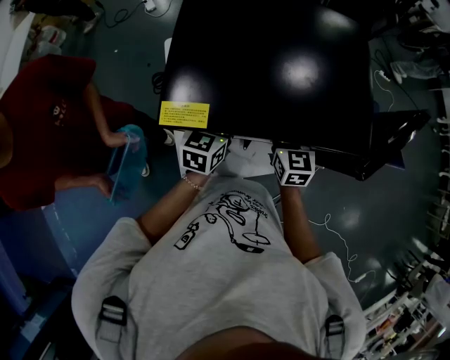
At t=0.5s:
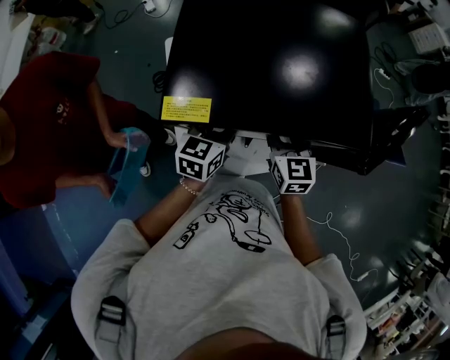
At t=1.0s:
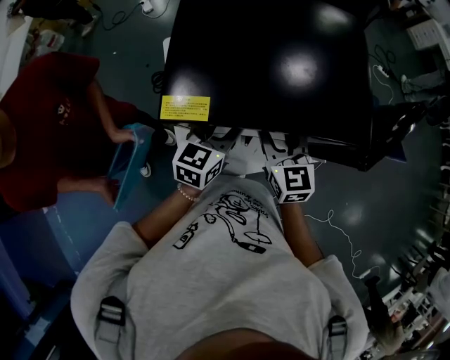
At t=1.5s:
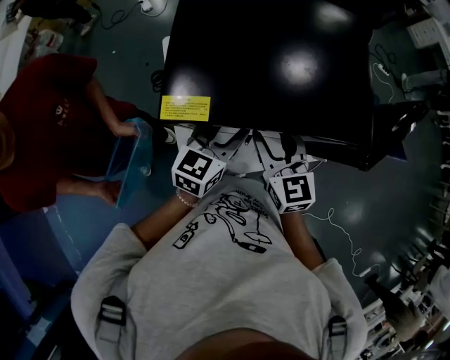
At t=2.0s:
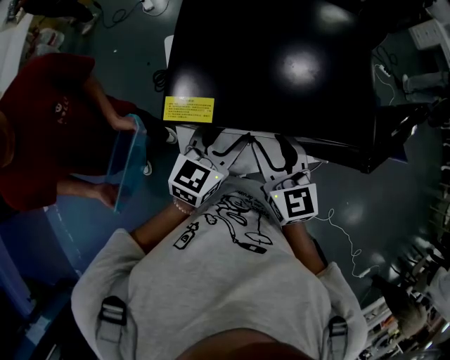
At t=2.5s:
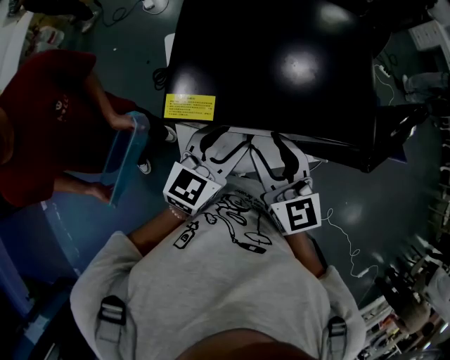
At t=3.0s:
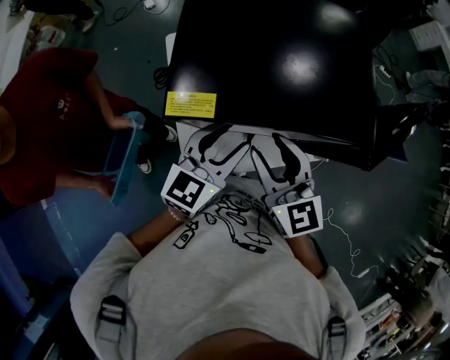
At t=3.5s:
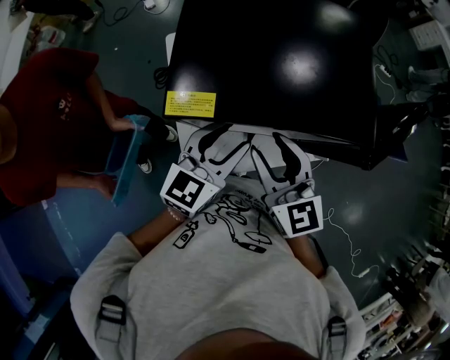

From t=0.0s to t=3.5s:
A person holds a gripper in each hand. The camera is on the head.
From t=0.0s to t=2.0s: The left gripper is displaced upward and backward by roughly 10 cm. Meanwhile the right gripper heads backward, upward and to the left, covering roughly 15 cm.
From t=2.0s to t=3.5s: The grippers make only small movements.

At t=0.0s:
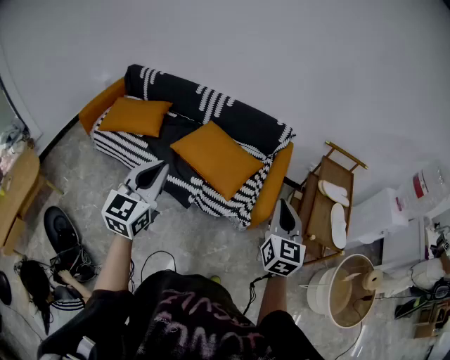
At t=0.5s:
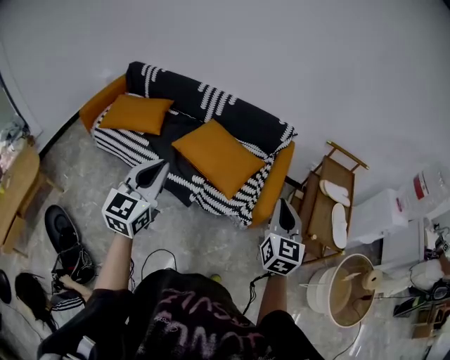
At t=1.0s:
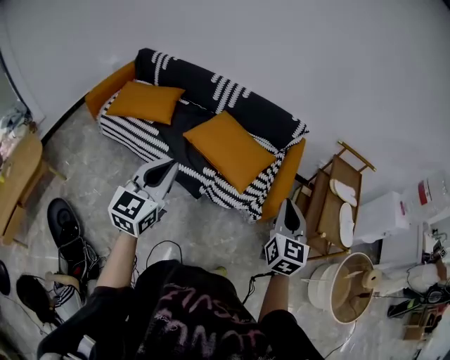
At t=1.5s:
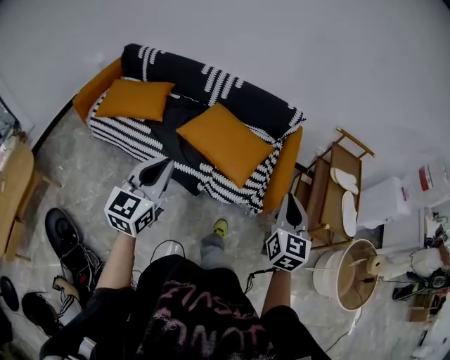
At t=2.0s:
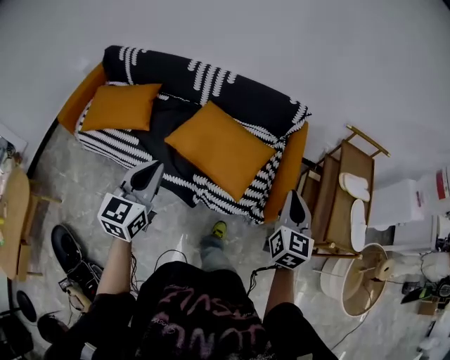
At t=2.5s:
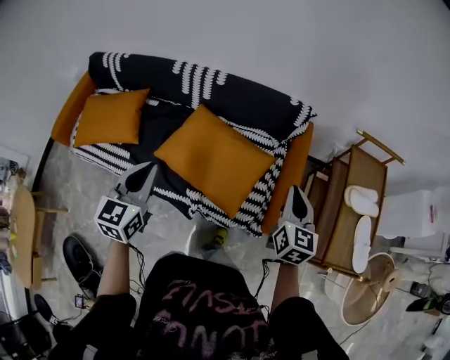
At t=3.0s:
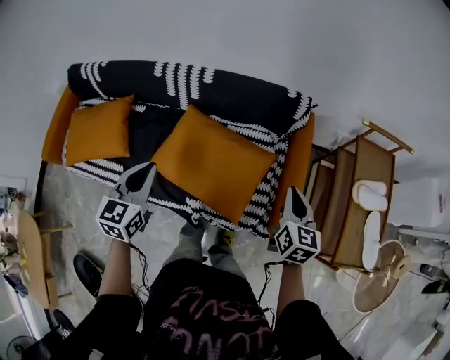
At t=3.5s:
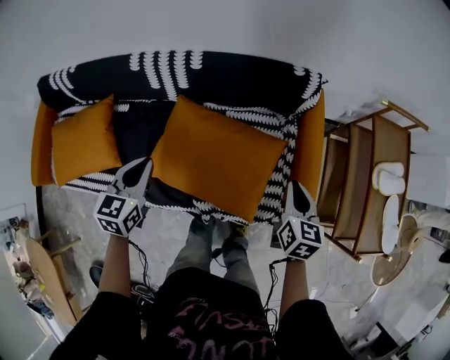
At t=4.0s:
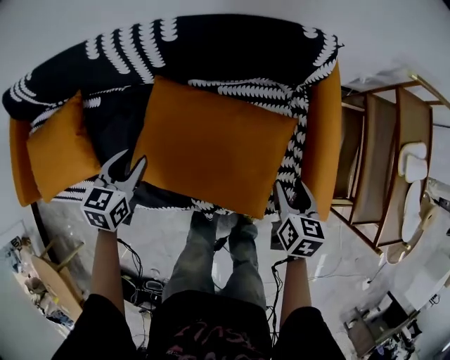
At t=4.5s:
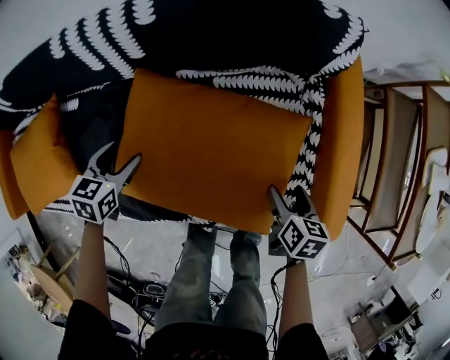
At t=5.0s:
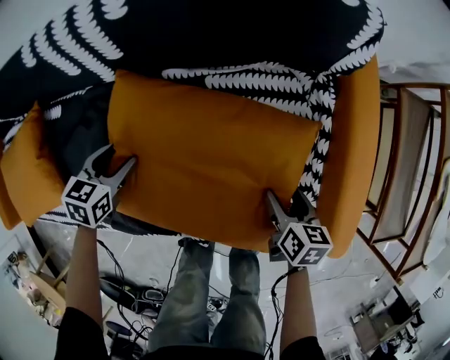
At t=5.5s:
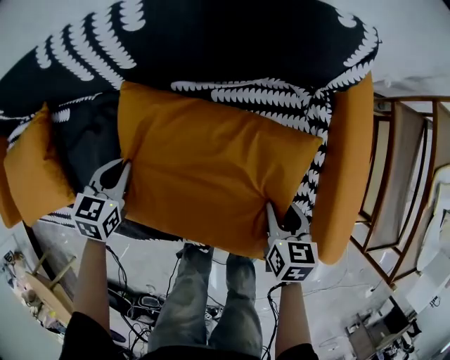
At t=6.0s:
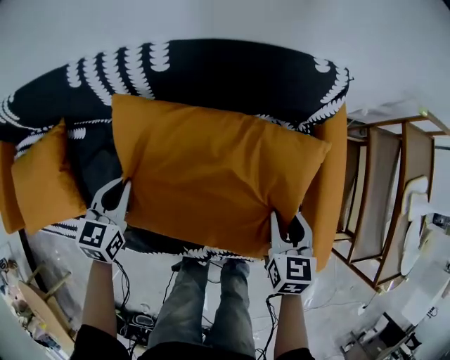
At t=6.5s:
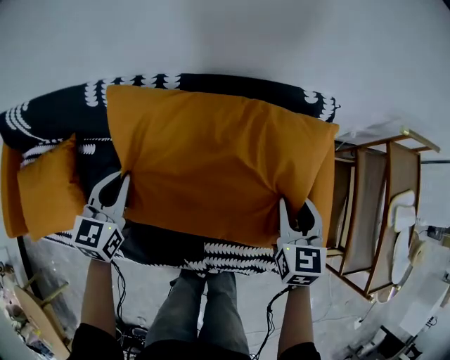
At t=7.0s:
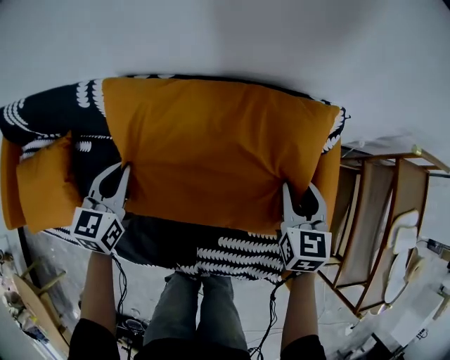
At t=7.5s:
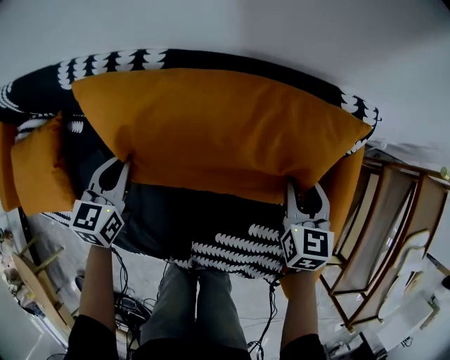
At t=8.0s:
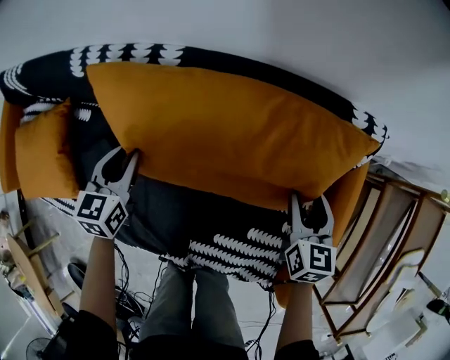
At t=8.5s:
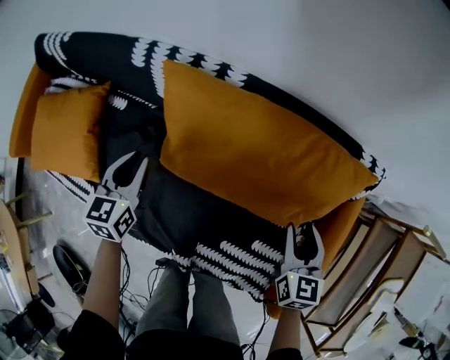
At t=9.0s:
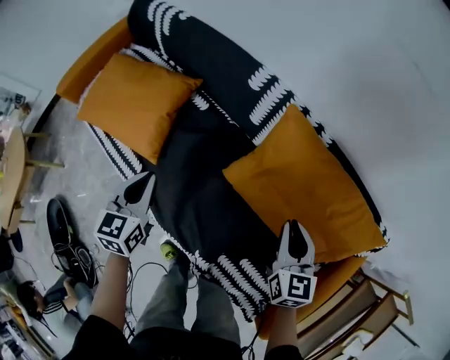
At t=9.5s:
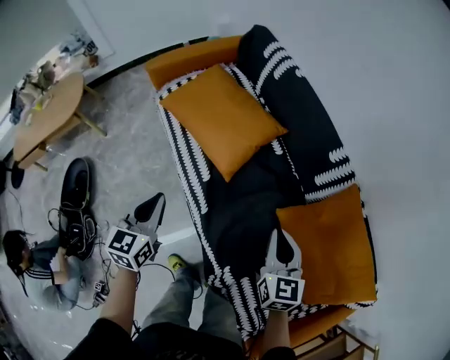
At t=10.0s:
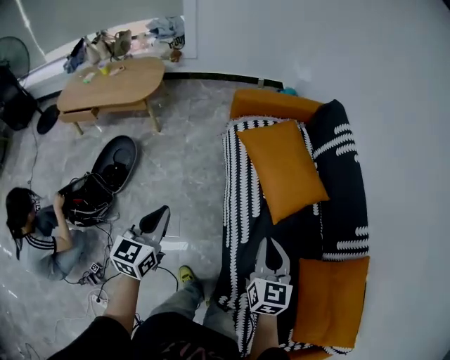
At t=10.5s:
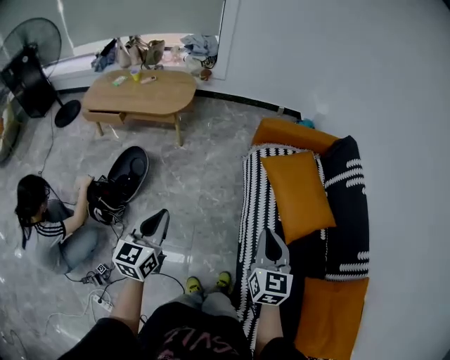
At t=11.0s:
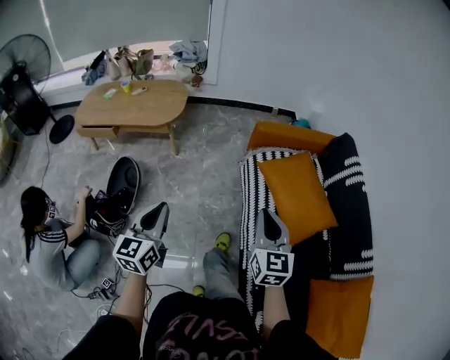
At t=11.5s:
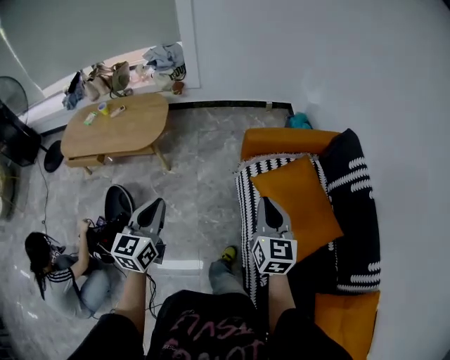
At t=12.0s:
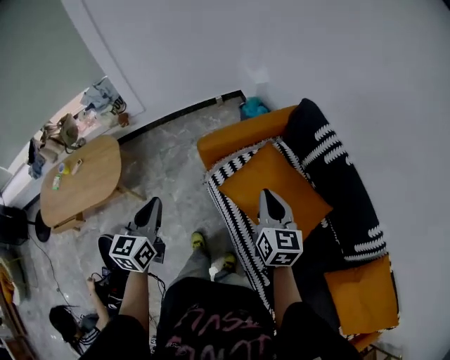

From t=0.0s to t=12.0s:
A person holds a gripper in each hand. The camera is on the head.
From t=0.0s to t=2.0s: The right gripper moves forward and downward, roughly 20 cm; the left gripper moves forward, downward and to the left, roughly 25 cm.
From t=2.0s to t=4.0s: The right gripper travels downward and forward by roughly 40 cm, points its fingers about 40 degrees further downward, and opens. The left gripper goes approximately 50 cm forward and downward, tips its fingers downward by roughly 30 degrees, and opens.
From t=4.0s to t=6.0s: The grippers both shift forward by roughly 5 cm. The left gripper moves some 20 cm downward and comes back; the right gripper moves approximately 20 cm downward and comes back.
From t=6.0s to t=8.0s: The right gripper heads forward, covering about 20 cm; the left gripper moves forward, some 10 cm, and goes upward and returns, roughly 10 cm each way.
From t=8.0s to t=10.0s: The pair of grippers is taken roughly 80 cm. The left gripper changes its angle by some 70 degrees; the right gripper changes its angle by roughly 80 degrees, and closes up.
From t=10.0s to t=12.0s: Both grippers travel together forward, approximately 40 cm.

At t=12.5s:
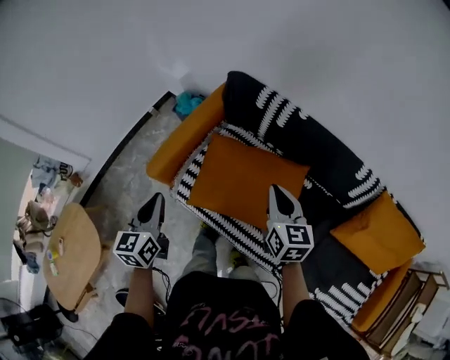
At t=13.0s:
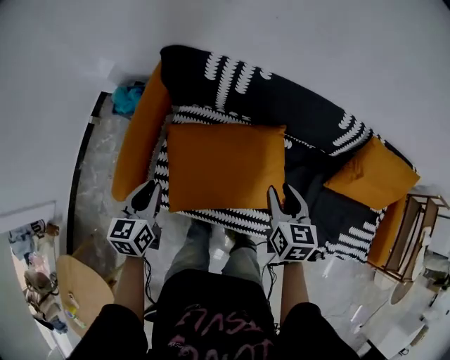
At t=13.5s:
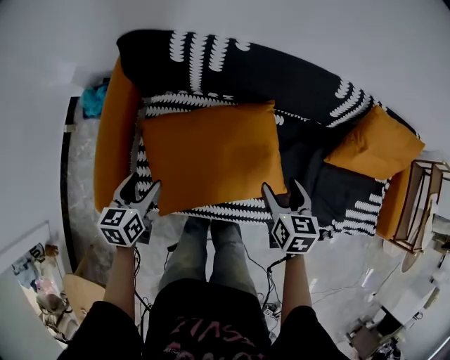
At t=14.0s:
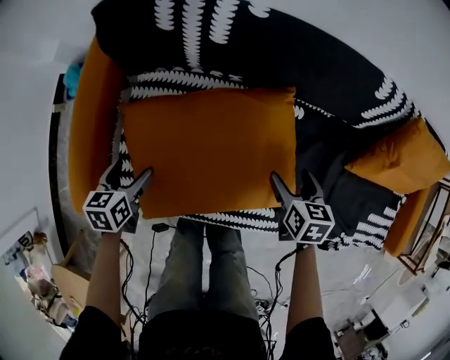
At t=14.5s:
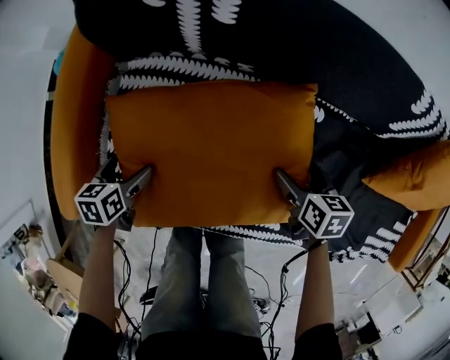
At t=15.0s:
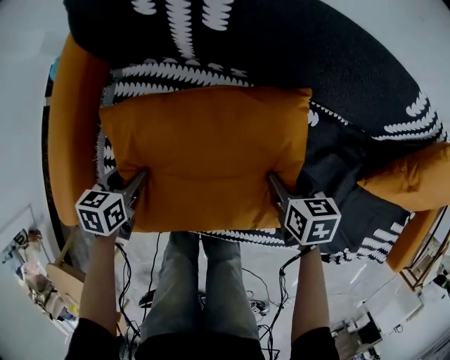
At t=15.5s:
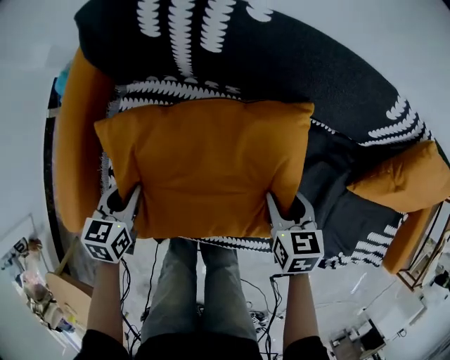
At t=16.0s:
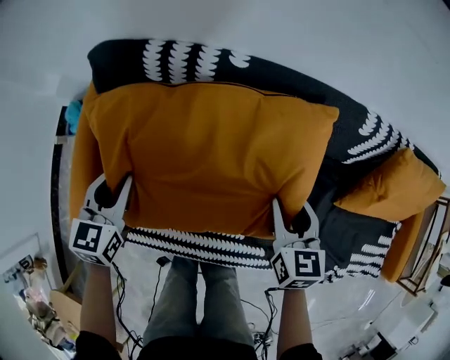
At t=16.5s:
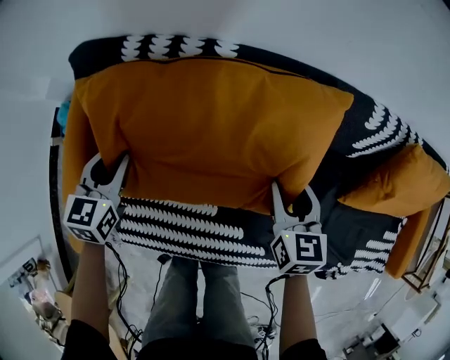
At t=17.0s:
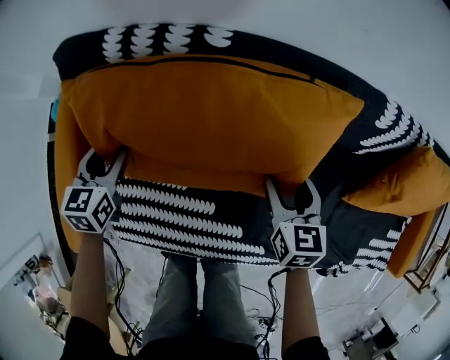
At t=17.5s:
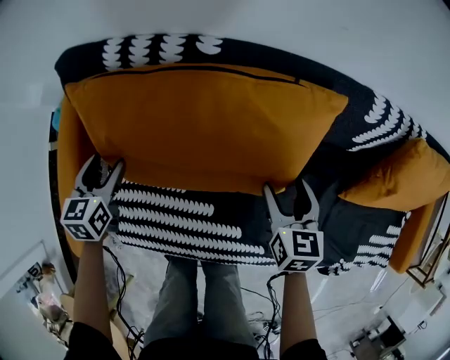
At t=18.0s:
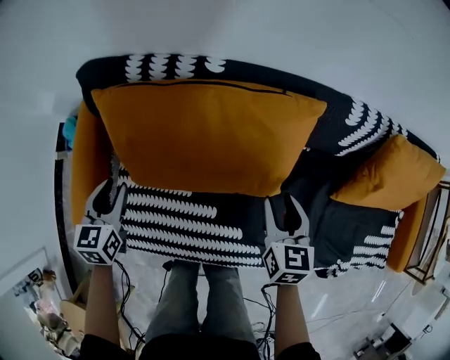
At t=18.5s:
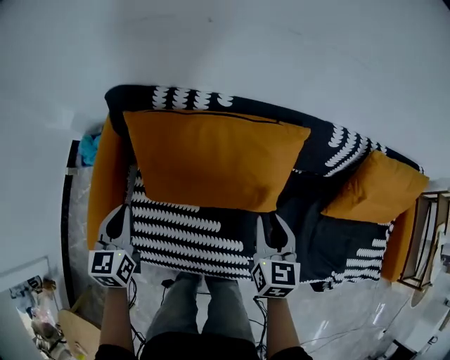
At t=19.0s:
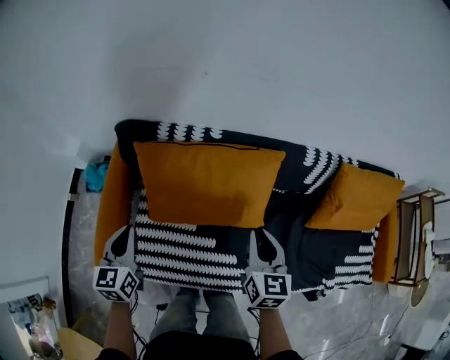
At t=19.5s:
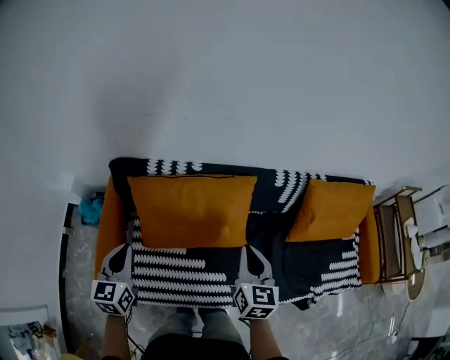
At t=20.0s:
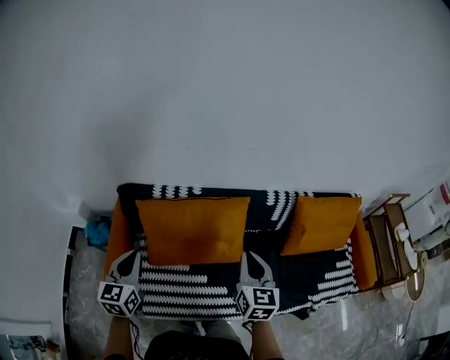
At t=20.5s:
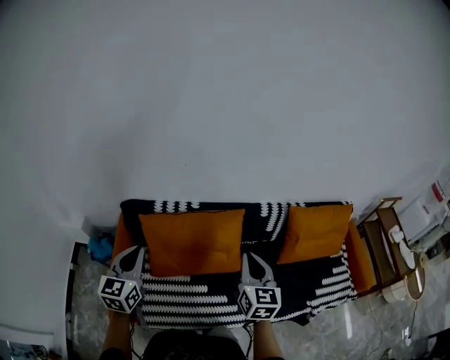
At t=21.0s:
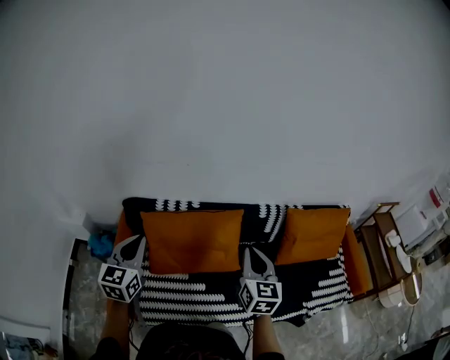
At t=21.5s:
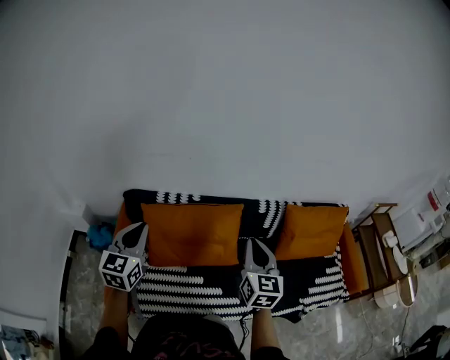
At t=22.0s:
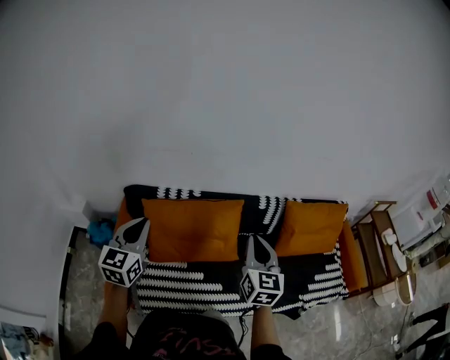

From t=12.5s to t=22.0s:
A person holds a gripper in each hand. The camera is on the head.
From t=12.5s to t=14.5s: The two grippers go about 50 cm downward. The right gripper tilts its fingers roughly 30 degrees downward, and opens its fingers. The left gripper angles its fingers downward, by about 40 degrees, and opens.
From t=14.5s to t=16.5s: Both grippers move upward and forward, approximately 20 cm. The right gripper changes its angle by roughly 30 degrees, and closes its fingers, while the left gripper rotates approximately 40 degrees, and closes up.
From t=16.5s to t=18.0s: Both grippers move backward, some 5 cm.
From t=18.0s to t=20.0s: Both grippers move upward, approximately 30 cm. The right gripper swivels some 20 degrees, and closes its fingers; the left gripper swivels approximately 20 degrees, and closes up.
From t=20.0s to t=22.0s: Both grippers move upward, roughly 10 cm.

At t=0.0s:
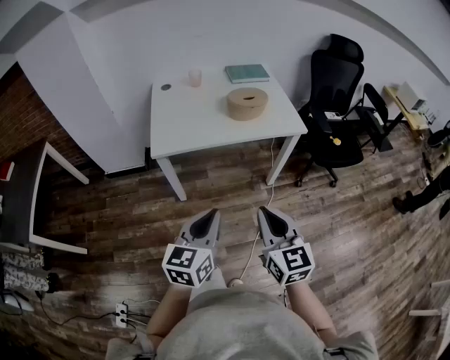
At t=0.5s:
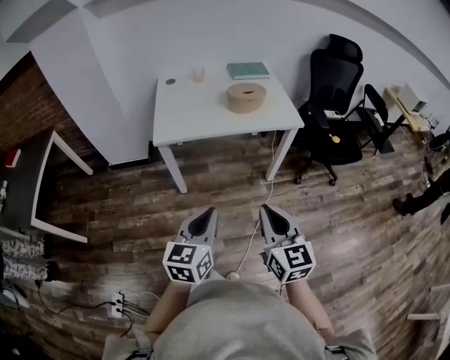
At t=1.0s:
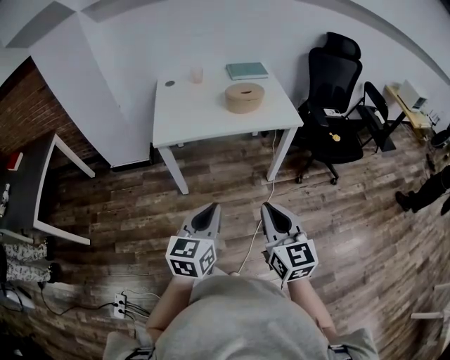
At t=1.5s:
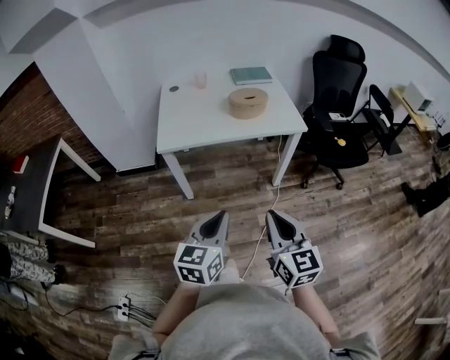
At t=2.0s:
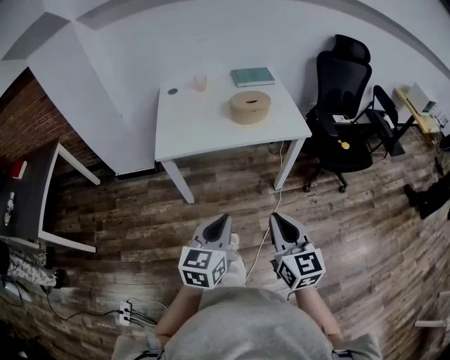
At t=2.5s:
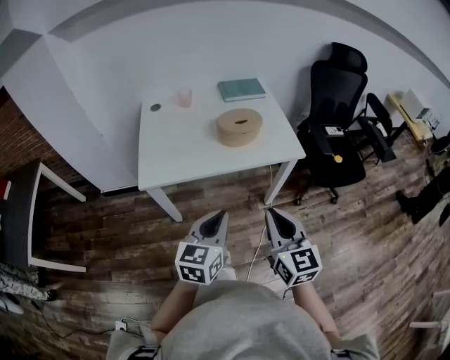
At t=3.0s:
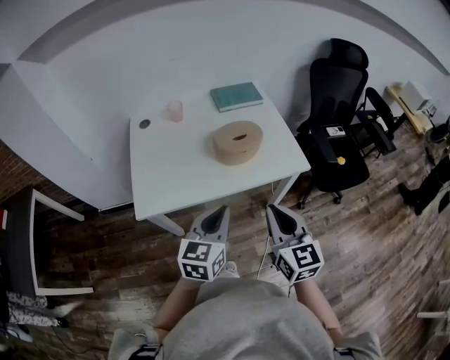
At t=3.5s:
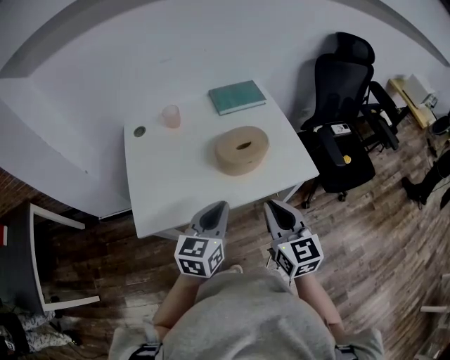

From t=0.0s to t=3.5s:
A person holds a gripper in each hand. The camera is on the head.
From t=0.0s to t=2.0s: The two grippers go some 5 cm to the right.
From t=2.0s to t=3.5s: The two grippers go approximately 35 cm forward.
